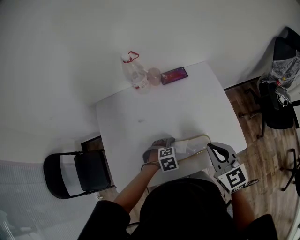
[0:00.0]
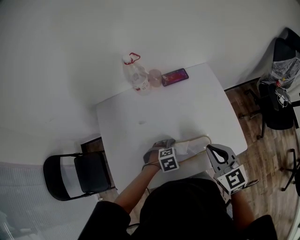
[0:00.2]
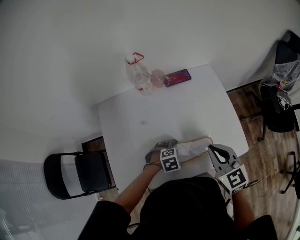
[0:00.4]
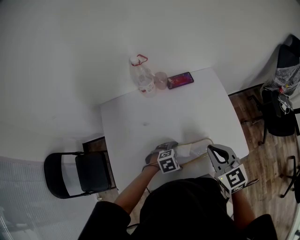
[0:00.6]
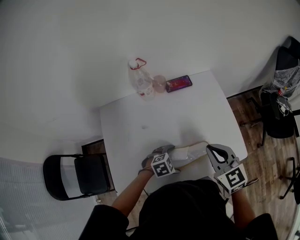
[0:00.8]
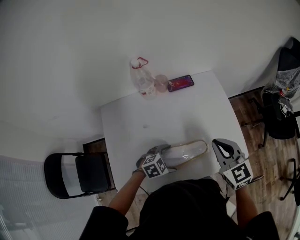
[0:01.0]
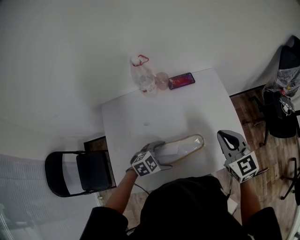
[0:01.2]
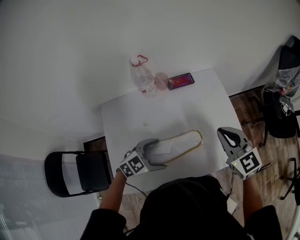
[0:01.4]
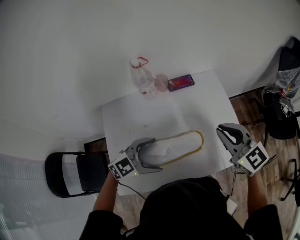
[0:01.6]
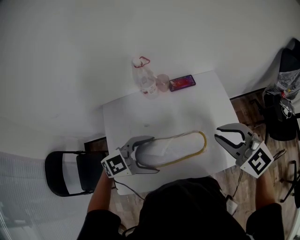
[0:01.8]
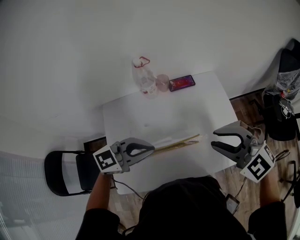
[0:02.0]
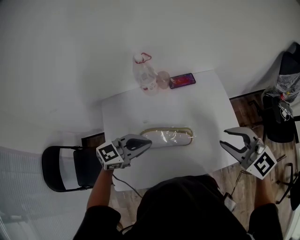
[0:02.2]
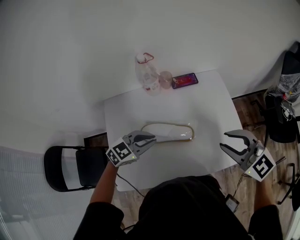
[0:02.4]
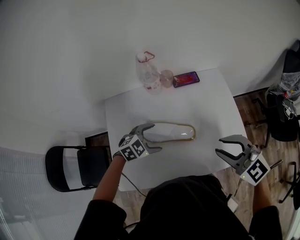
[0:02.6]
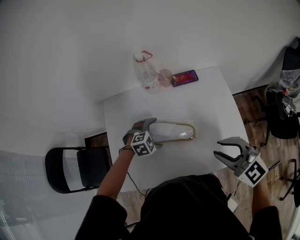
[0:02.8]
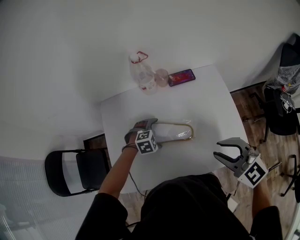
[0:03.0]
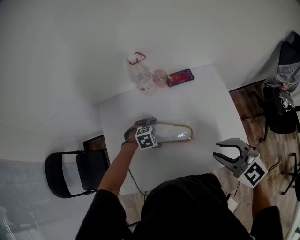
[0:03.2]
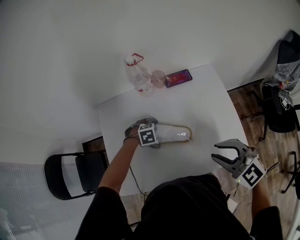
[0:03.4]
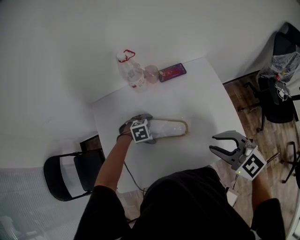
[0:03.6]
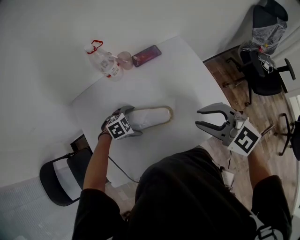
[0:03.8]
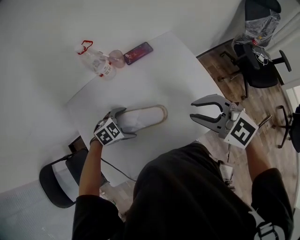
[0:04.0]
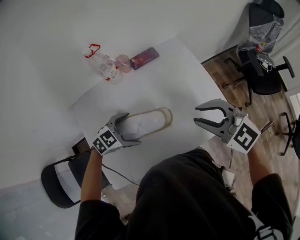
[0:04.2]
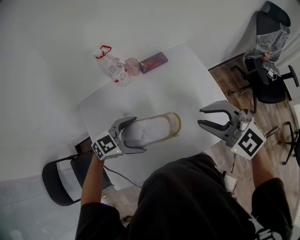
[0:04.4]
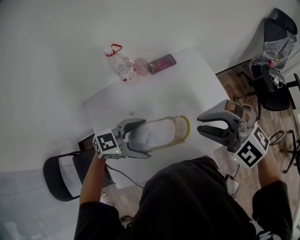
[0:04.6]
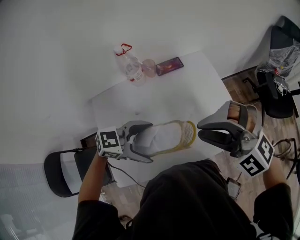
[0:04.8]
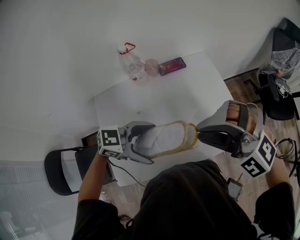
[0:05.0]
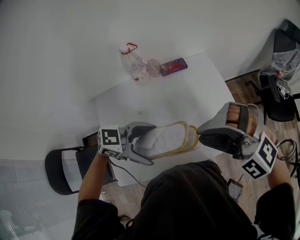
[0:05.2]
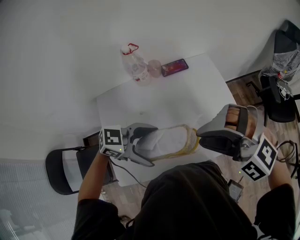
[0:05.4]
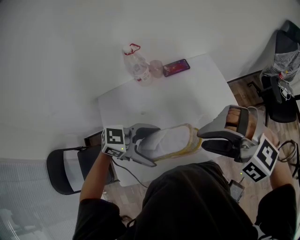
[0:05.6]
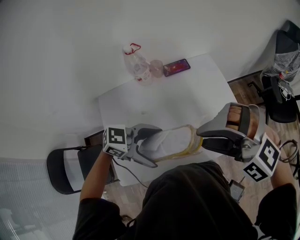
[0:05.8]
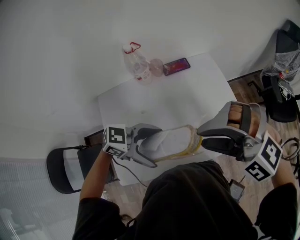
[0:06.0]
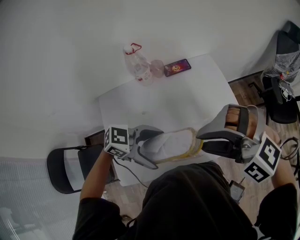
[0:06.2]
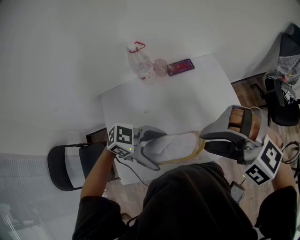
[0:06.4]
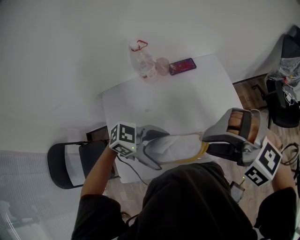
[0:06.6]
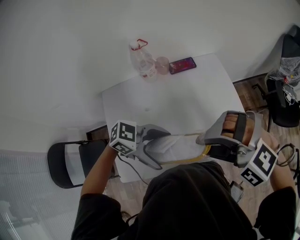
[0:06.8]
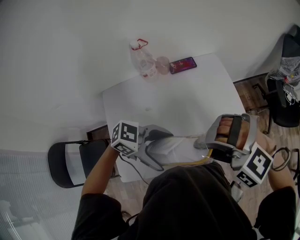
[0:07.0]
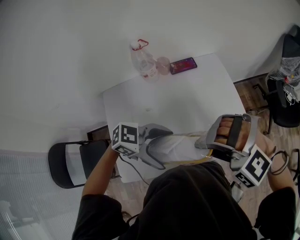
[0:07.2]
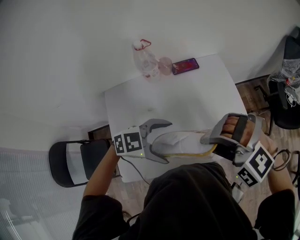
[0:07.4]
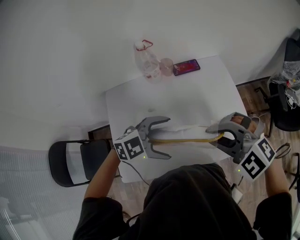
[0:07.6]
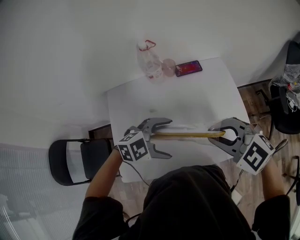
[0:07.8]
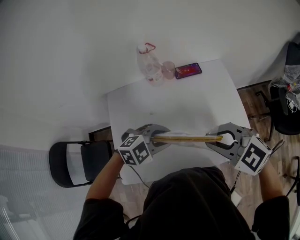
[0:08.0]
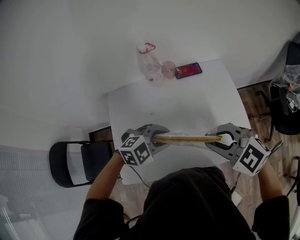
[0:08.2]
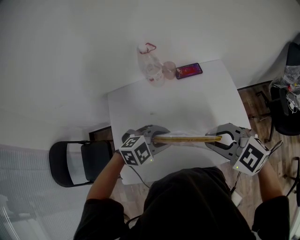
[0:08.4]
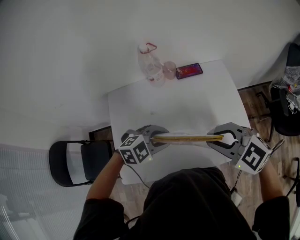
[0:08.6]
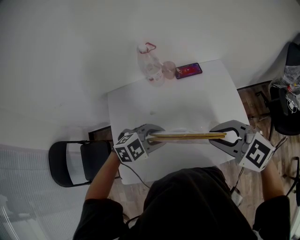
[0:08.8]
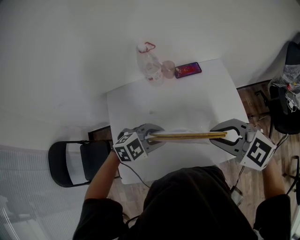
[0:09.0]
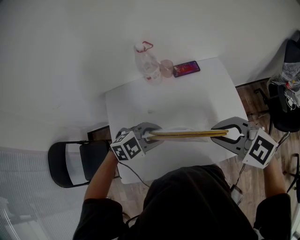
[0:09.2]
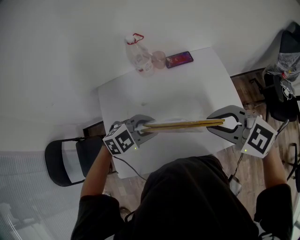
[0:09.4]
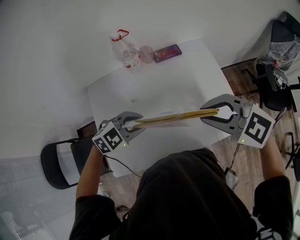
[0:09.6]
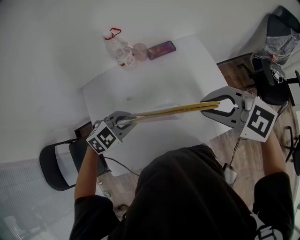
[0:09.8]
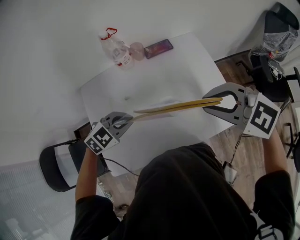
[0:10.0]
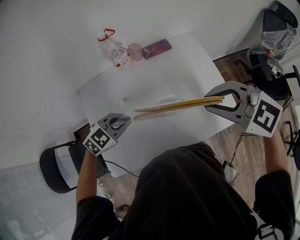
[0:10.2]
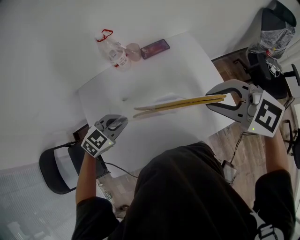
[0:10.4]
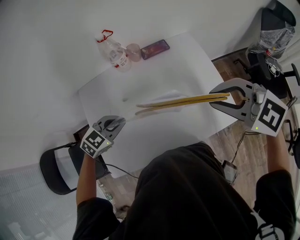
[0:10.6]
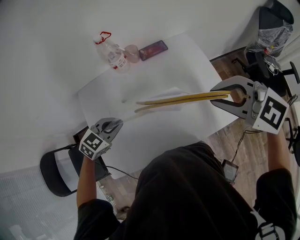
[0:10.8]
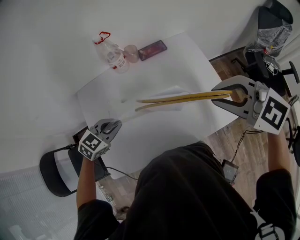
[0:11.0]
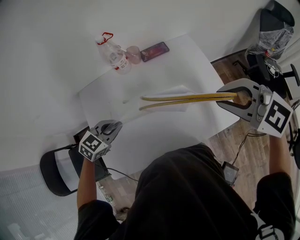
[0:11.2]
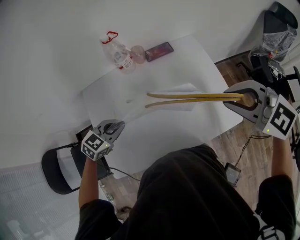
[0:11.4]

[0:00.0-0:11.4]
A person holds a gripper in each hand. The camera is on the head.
0:00.0 to 0:01.4: The left gripper heads upward and to the left, covering roughly 15 cm, and angles its fingers upward, by about 30 degrees. Meanwhile the right gripper is displaced forward by about 5 cm.
0:01.4 to 0:02.8: The right gripper ends up roughly 5 cm from where it was, rotates some 30 degrees, and opens its fingers. The left gripper shifts by approximately 15 cm, rotates roughly 30 degrees, and closes and opens again.
0:02.8 to 0:04.2: The left gripper moves upward, approximately 5 cm, and swivels about 20 degrees.
0:04.2 to 0:05.6: The right gripper changes place by approximately 10 cm, and rolls counterclockwise, seen from behind, by approximately 50 degrees. The left gripper heads upward, covering approximately 15 cm, and turns by some 30 degrees.
0:05.6 to 0:07.2: The right gripper closes.
0:07.2 to 0:08.6: The left gripper ends up some 10 cm from where it was, rotates approximately 40 degrees, and closes. Meanwhile the right gripper shifts by some 5 cm, and rolls clockwise, seen from behind, by roughly 50 degrees.
0:08.6 to 0:10.0: The left gripper changes place by some 5 cm. The right gripper shifts by approximately 5 cm.
0:10.0 to 0:11.4: The right gripper ends up some 5 cm from where it was. The left gripper changes place by about 5 cm.

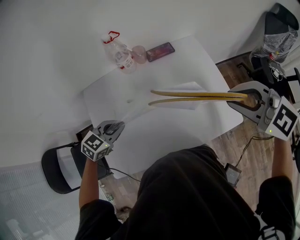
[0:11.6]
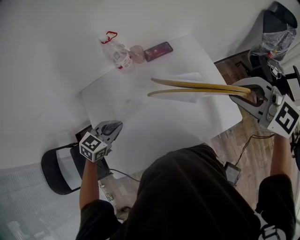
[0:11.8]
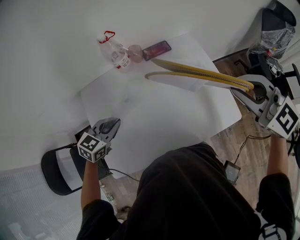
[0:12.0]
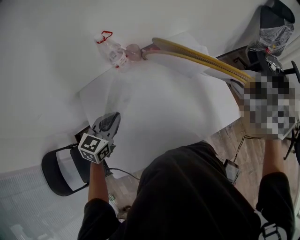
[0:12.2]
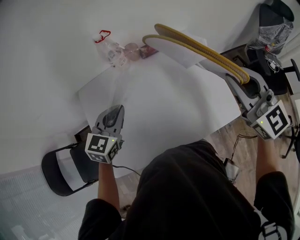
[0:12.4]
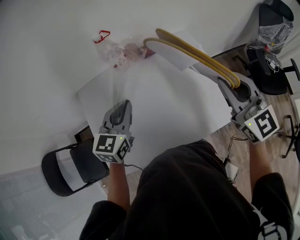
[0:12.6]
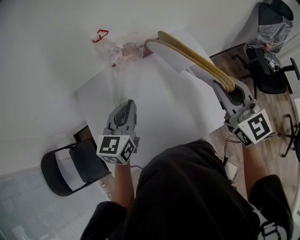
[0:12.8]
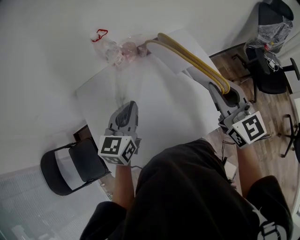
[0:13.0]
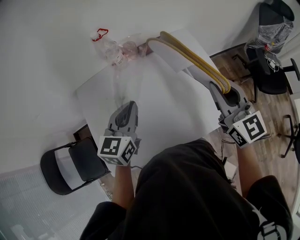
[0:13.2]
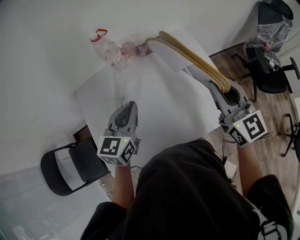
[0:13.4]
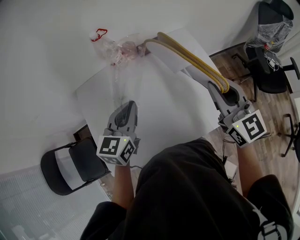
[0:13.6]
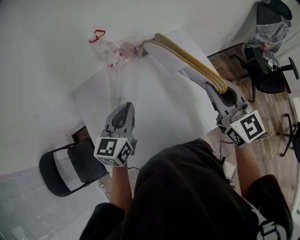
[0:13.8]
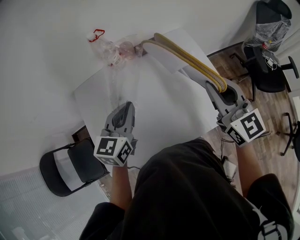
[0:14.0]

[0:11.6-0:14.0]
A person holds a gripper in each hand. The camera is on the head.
0:11.6 to 0:12.8: The right gripper swivels roughly 40 degrees; the left gripper shifts approximately 15 cm upward and to the right, and turns by roughly 40 degrees.
0:12.8 to 0:14.0: The grippers stay close to where they were, moving slightly.

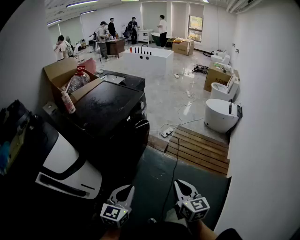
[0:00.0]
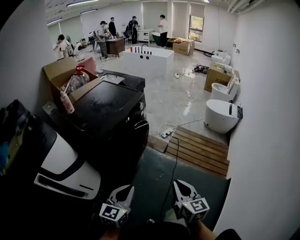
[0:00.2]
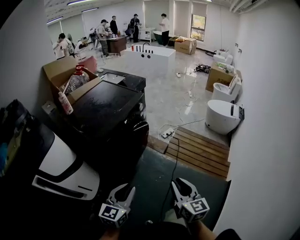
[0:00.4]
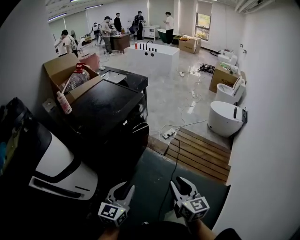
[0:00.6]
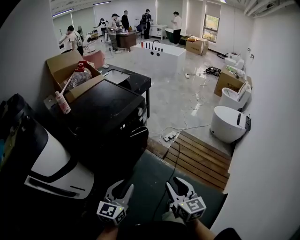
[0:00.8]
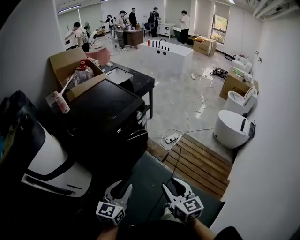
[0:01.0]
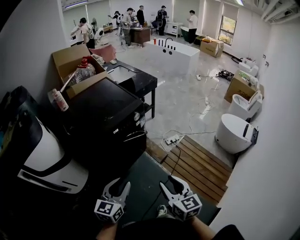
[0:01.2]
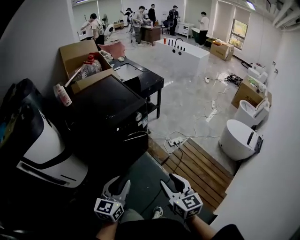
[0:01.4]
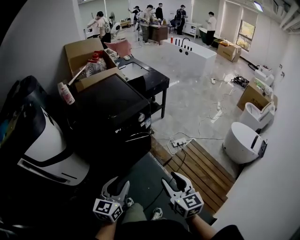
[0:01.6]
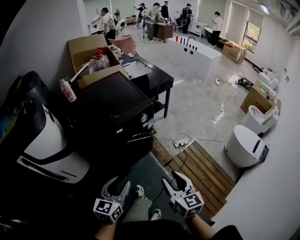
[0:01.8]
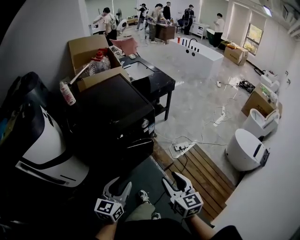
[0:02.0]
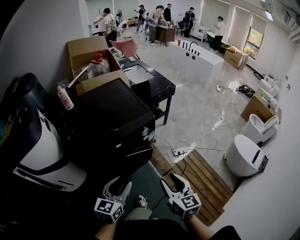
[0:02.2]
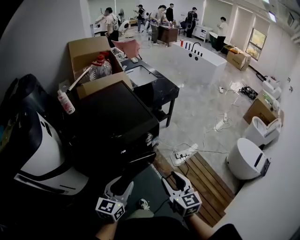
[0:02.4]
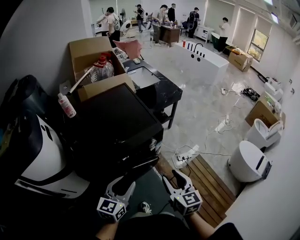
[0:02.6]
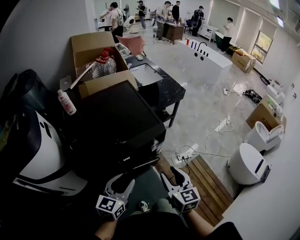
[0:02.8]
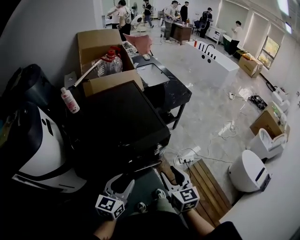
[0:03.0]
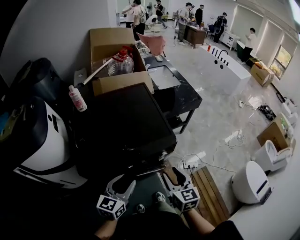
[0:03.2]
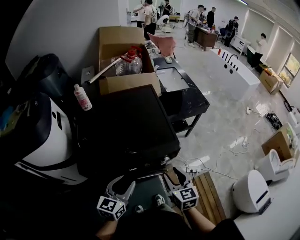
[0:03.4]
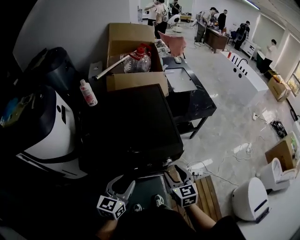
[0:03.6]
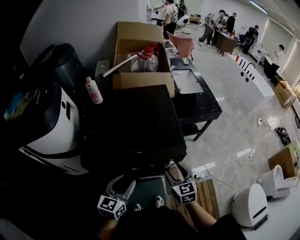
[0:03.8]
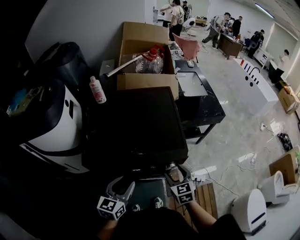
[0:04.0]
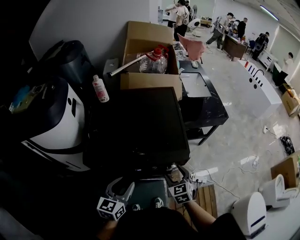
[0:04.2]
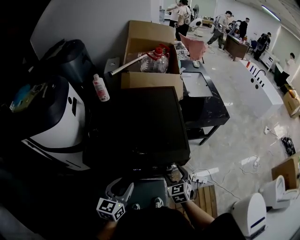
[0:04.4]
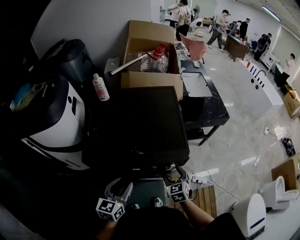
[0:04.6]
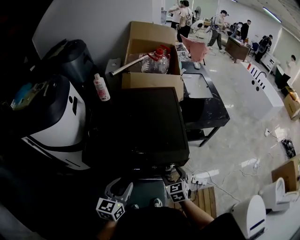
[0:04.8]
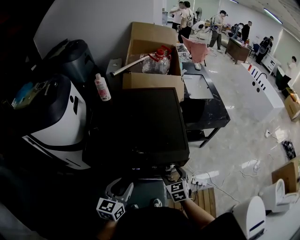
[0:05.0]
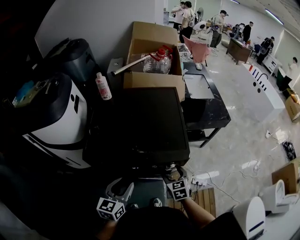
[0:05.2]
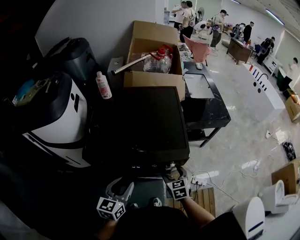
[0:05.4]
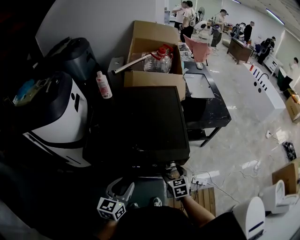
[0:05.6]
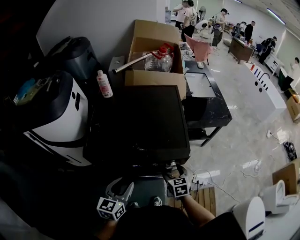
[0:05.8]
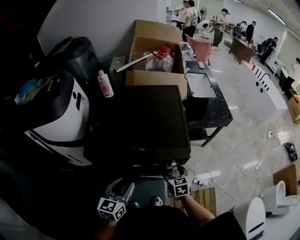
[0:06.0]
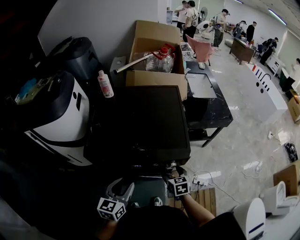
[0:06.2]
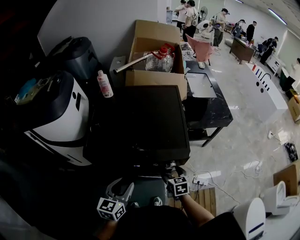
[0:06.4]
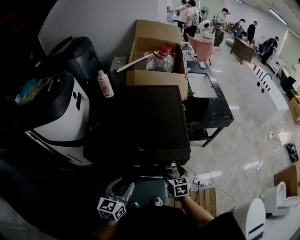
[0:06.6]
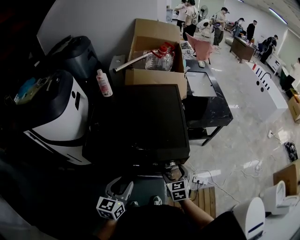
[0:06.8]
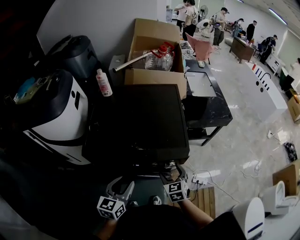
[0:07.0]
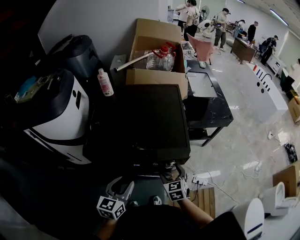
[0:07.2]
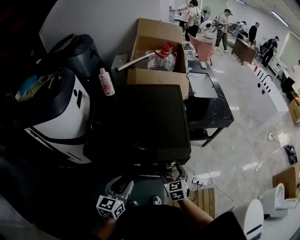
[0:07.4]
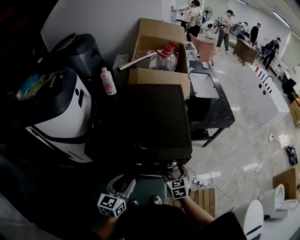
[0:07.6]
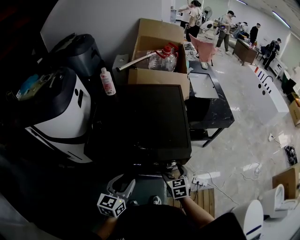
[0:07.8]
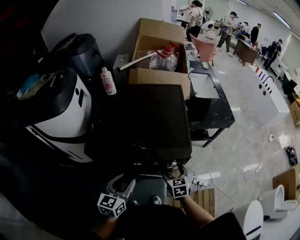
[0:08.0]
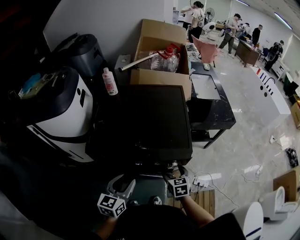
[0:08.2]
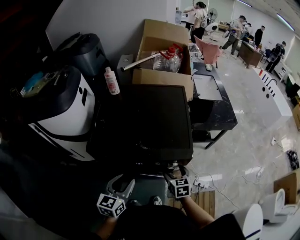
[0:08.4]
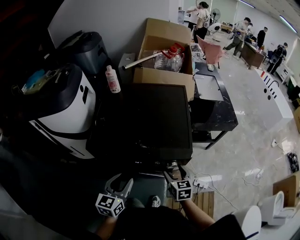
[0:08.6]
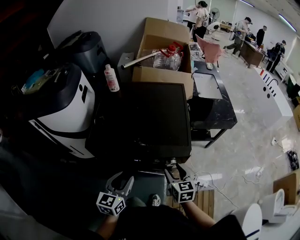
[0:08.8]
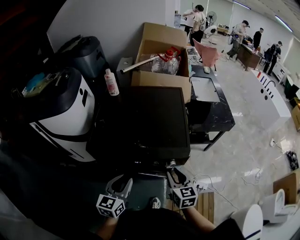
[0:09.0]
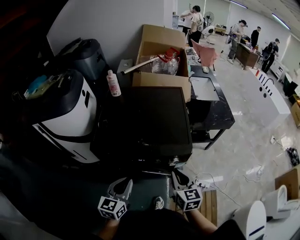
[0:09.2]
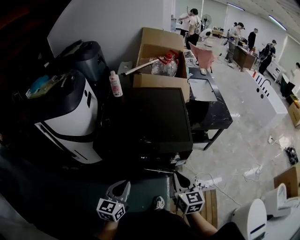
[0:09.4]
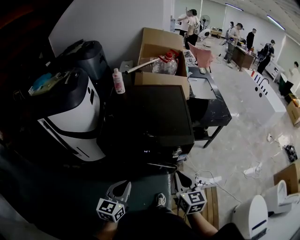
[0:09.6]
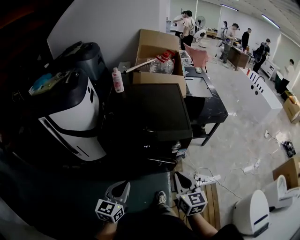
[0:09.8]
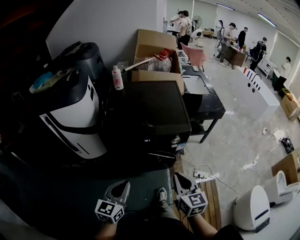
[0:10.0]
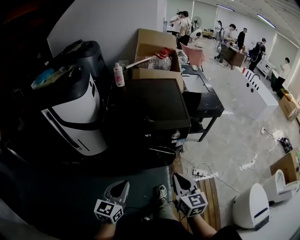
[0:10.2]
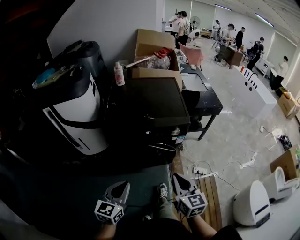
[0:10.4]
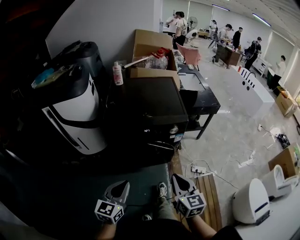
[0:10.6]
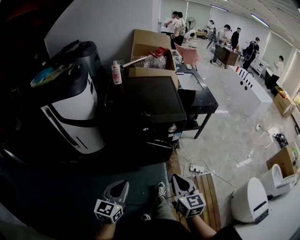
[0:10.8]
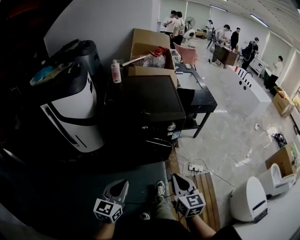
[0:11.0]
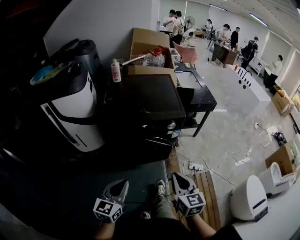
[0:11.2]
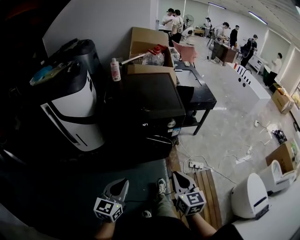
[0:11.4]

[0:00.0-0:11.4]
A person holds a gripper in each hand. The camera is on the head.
0:00.0 to 0:01.4: Both grippers travel together forward and to the right, roughly 30 cm. The left gripper rotates some 20 degrees, and opens. The right gripper swivels approximately 30 degrees, and opens.
0:01.4 to 0:02.8: Both grippers move forward, roughly 25 cm.
0:02.8 to 0:04.2: The right gripper shifts some 20 cm forward and downward, and rotates some 40 degrees, while the left gripper goes some 5 cm forward, and swivels roughly 30 degrees.
0:04.2 to 0:05.6: The right gripper heads downward, covering roughly 5 cm.
0:05.6 to 0:08.6: The grippers stay close to where they were, moving slightly.
0:08.6 to 0:10.0: The right gripper is displaced backward and upward by some 30 cm, and closes; the left gripper goes roughly 20 cm backward, and closes.
0:10.0 to 0:11.4: The grippers both shift backward by roughly 10 cm.
